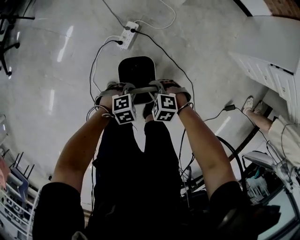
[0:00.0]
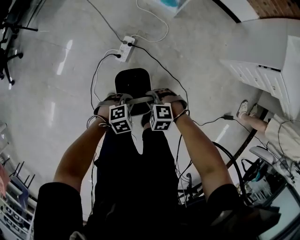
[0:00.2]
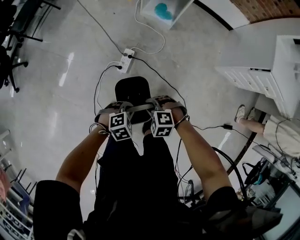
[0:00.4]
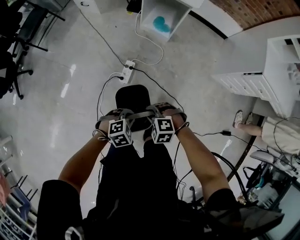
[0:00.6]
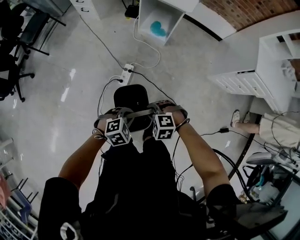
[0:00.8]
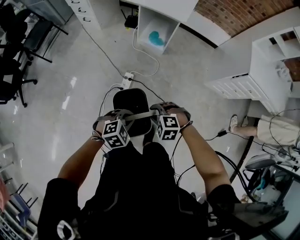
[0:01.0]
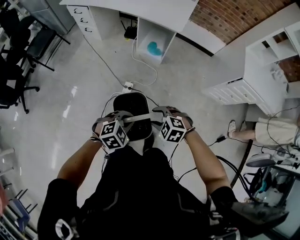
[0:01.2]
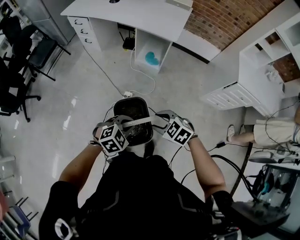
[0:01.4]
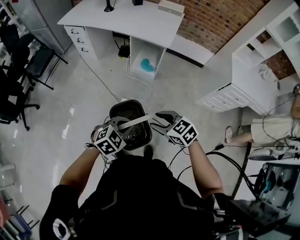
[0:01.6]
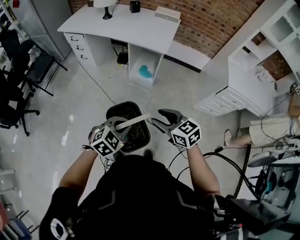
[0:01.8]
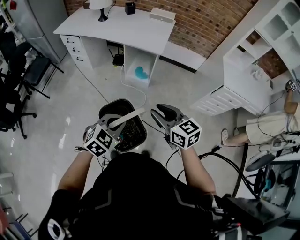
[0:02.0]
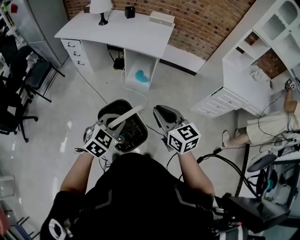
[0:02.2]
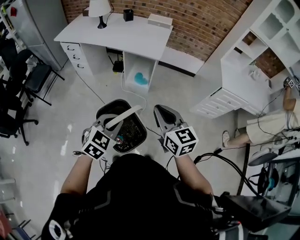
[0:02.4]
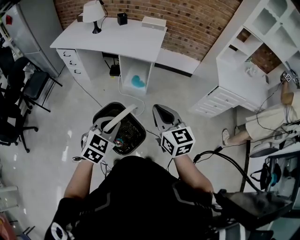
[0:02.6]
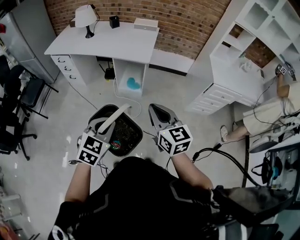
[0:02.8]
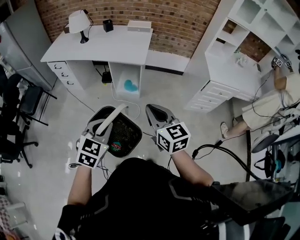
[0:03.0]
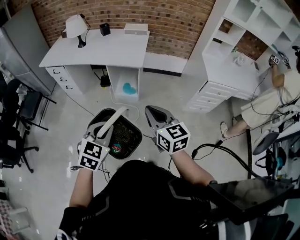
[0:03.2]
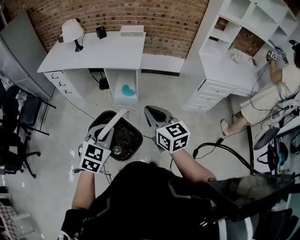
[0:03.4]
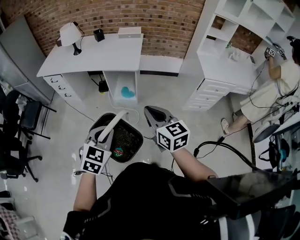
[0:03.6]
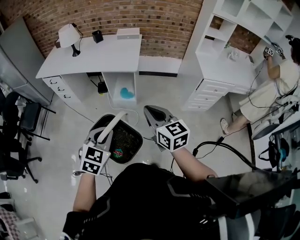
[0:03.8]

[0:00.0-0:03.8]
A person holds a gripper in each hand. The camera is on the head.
0:00.0 to 0:01.2: The grippers both shift upward by about 30 cm. The right gripper opens up; the left gripper turns by roughly 20 degrees.
0:01.2 to 0:02.6: Both grippers move upward, some 20 cm. The left gripper turns by roughly 30 degrees; the right gripper angles its fingers upward, by approximately 50 degrees, and closes its fingers.
0:02.6 to 0:03.8: The grippers move only a little.

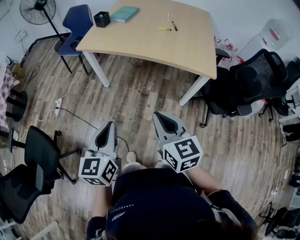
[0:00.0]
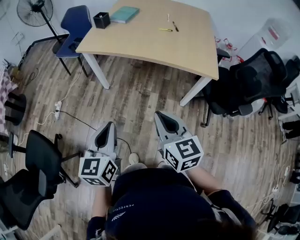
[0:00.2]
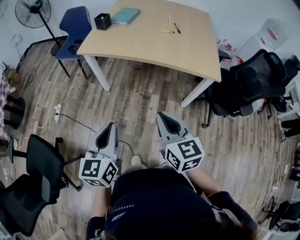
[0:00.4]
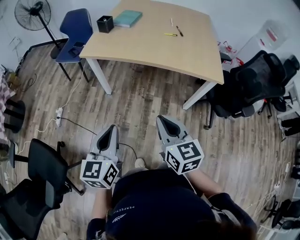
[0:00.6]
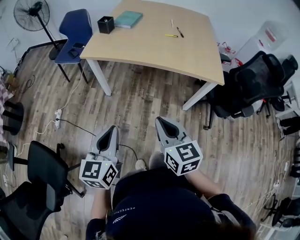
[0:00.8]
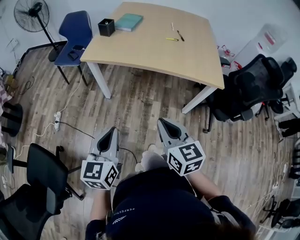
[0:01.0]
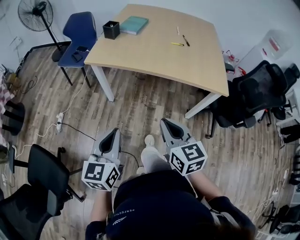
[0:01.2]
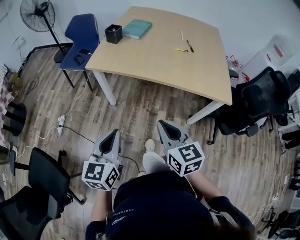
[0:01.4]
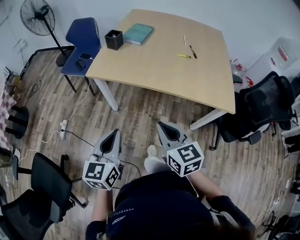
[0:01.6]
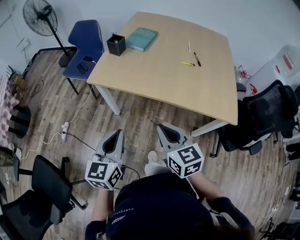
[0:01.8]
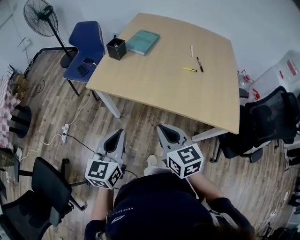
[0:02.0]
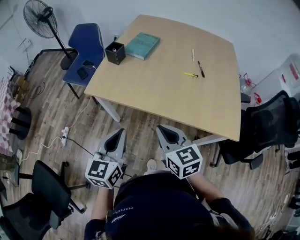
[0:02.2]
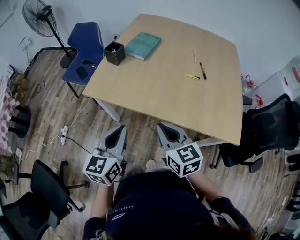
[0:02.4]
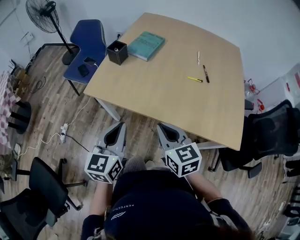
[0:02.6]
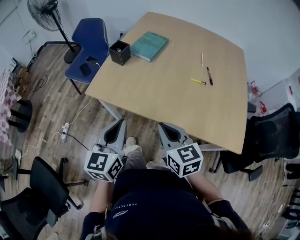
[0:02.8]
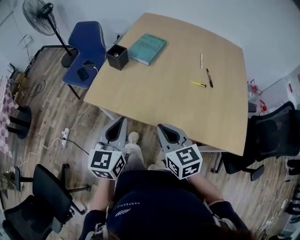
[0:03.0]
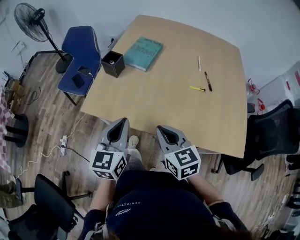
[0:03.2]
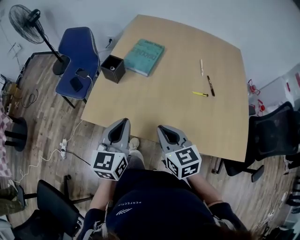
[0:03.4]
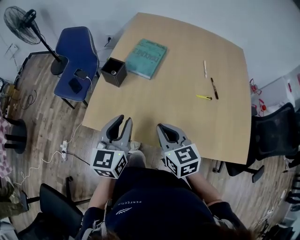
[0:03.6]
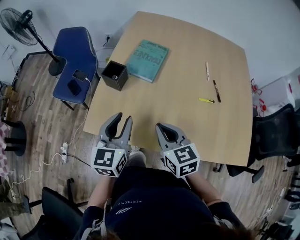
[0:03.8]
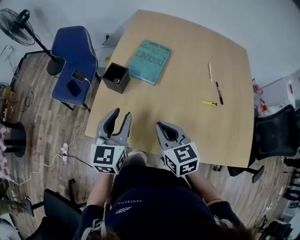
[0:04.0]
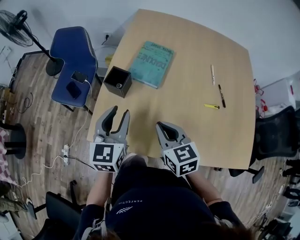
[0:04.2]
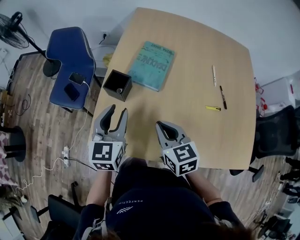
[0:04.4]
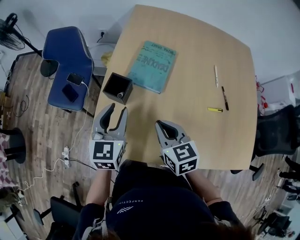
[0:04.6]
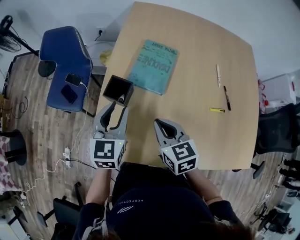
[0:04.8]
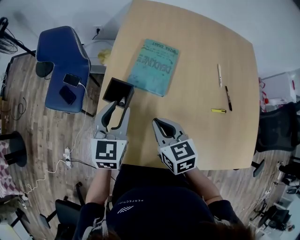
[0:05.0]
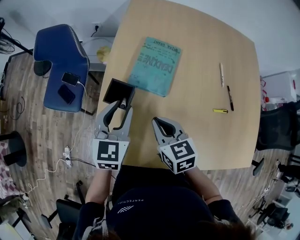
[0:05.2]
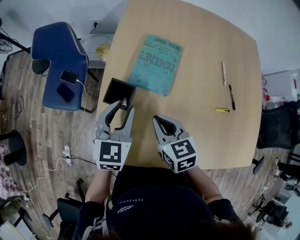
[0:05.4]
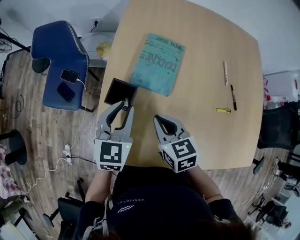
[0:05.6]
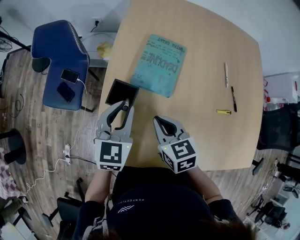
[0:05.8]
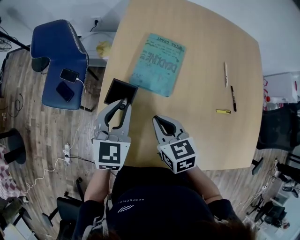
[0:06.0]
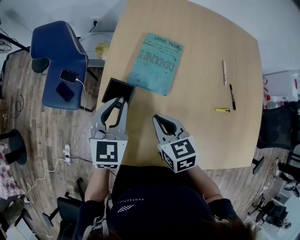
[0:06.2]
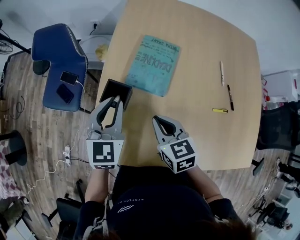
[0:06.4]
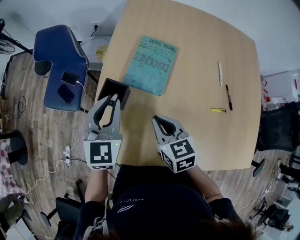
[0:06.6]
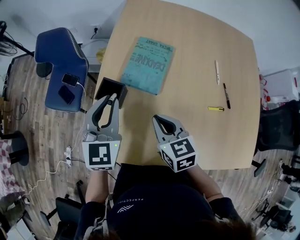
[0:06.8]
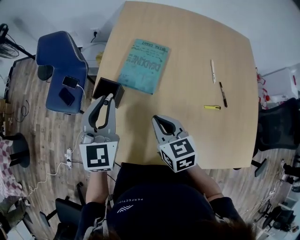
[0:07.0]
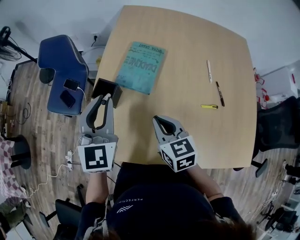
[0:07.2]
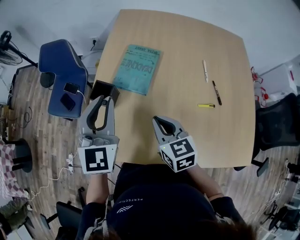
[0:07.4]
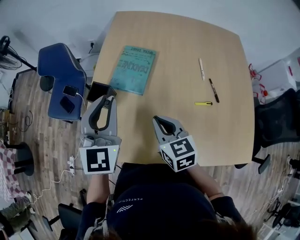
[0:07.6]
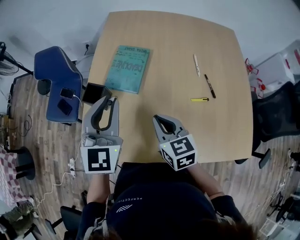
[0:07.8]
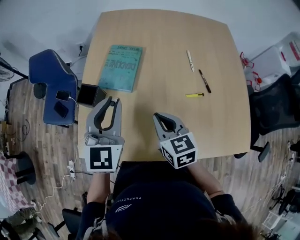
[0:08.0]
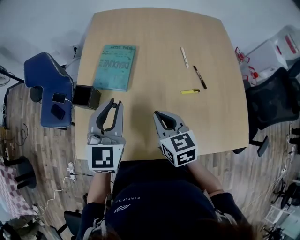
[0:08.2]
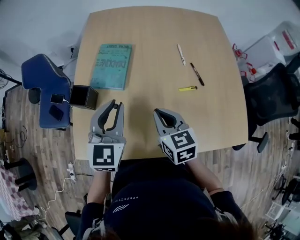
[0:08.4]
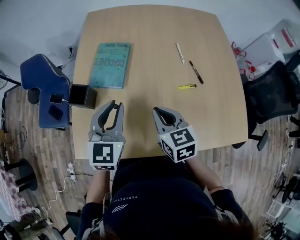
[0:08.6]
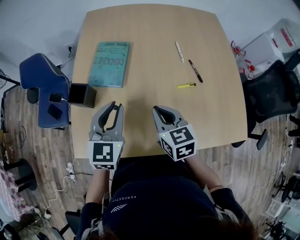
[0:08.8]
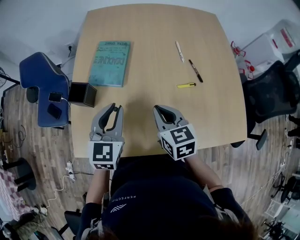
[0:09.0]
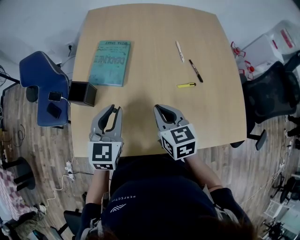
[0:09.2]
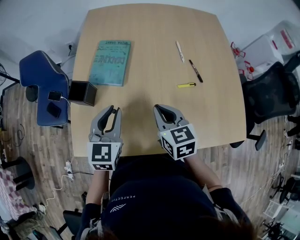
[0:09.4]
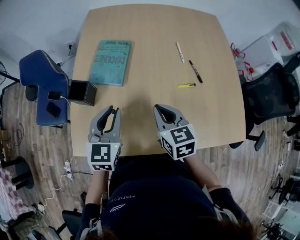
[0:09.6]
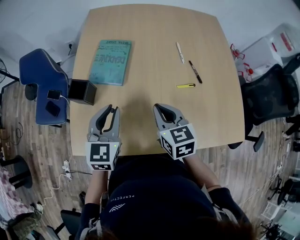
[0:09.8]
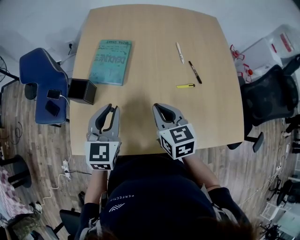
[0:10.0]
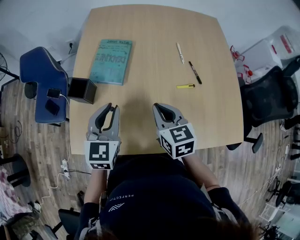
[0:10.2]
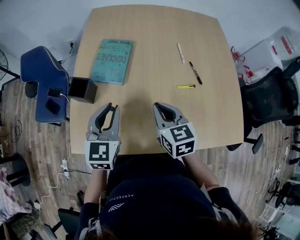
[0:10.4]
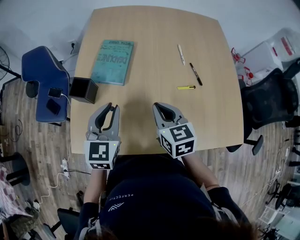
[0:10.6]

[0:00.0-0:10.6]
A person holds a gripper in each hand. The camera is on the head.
0:00.0 to 0:01.6: Both grippers move forward and to the left, approximately 20 cm.
0:01.6 to 0:03.0: Both grippers travel together forward, approximately 25 cm.
0:03.0 to 0:04.6: Both grippers travel together forward, approximately 30 cm. The left gripper opens.
0:04.6 to 0:06.0: The two grippers go roughly 5 cm forward.
0:06.0 to 0:07.6: The left gripper moves upward, to the right and backward, about 15 cm, and swivels some 20 degrees; the right gripper travels to the right, backward and upward by some 15 cm.
0:07.6 to 0:09.0: The left gripper shifts some 10 cm downward and to the right, and changes its angle by about 20 degrees. Meanwhile the right gripper travels to the right by about 5 cm.
0:09.0 to 0:10.6: The grippers move only a little.

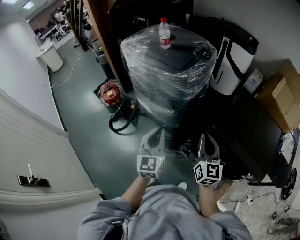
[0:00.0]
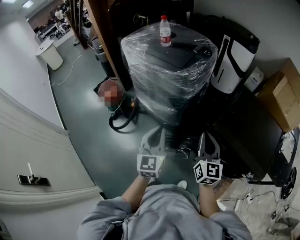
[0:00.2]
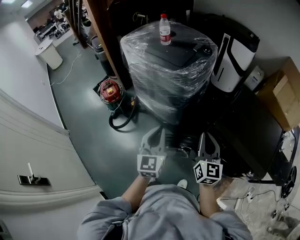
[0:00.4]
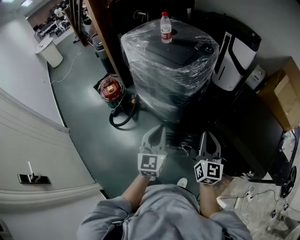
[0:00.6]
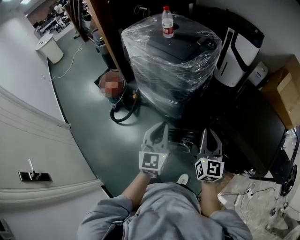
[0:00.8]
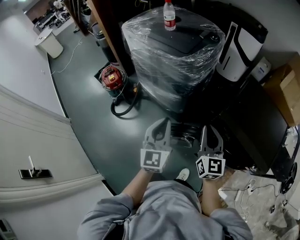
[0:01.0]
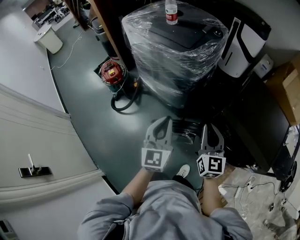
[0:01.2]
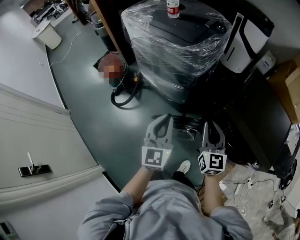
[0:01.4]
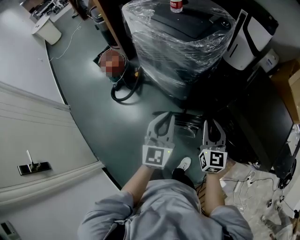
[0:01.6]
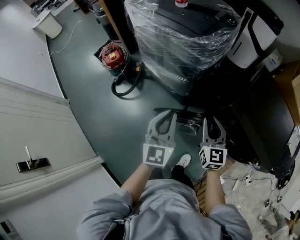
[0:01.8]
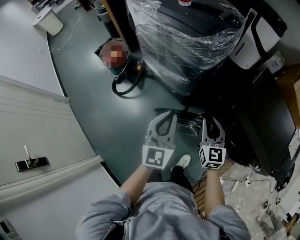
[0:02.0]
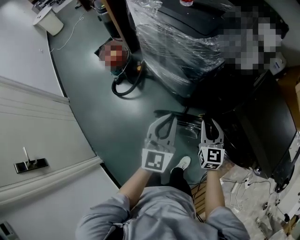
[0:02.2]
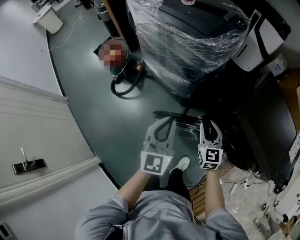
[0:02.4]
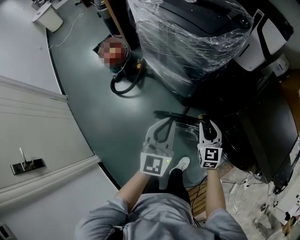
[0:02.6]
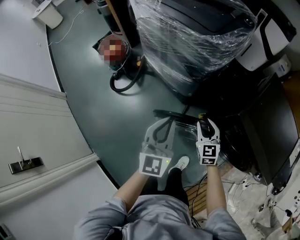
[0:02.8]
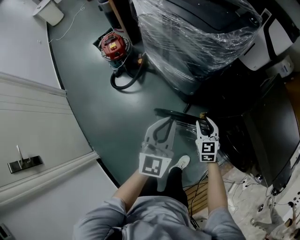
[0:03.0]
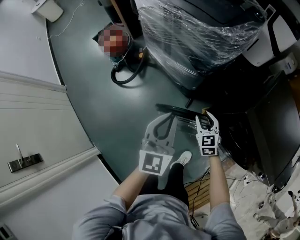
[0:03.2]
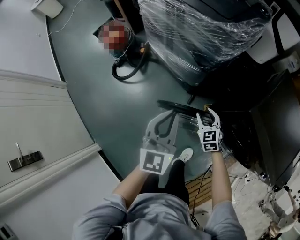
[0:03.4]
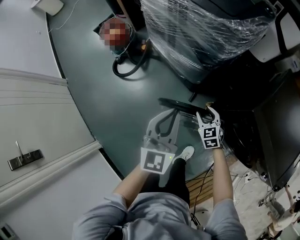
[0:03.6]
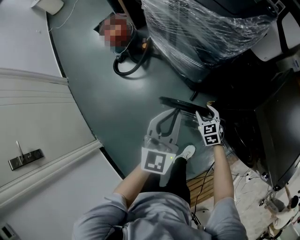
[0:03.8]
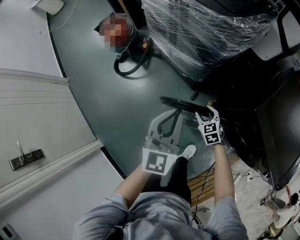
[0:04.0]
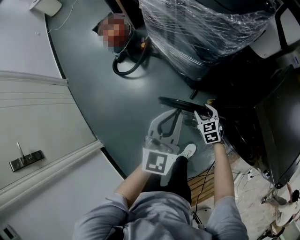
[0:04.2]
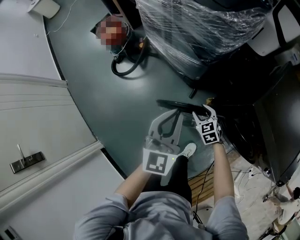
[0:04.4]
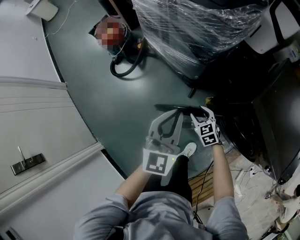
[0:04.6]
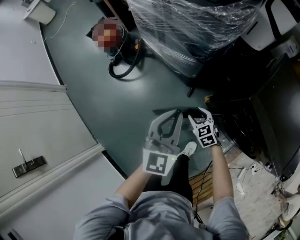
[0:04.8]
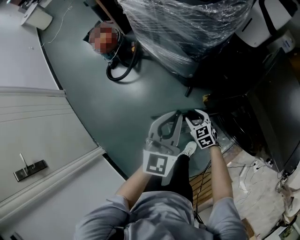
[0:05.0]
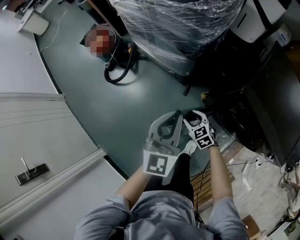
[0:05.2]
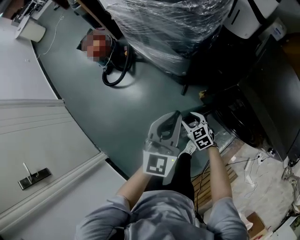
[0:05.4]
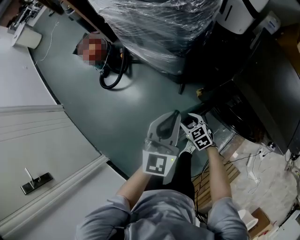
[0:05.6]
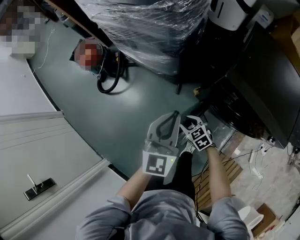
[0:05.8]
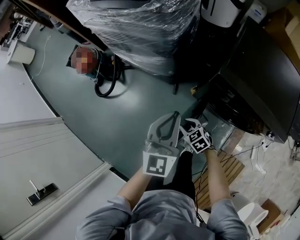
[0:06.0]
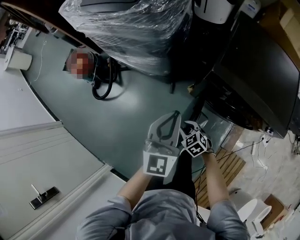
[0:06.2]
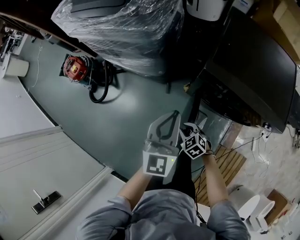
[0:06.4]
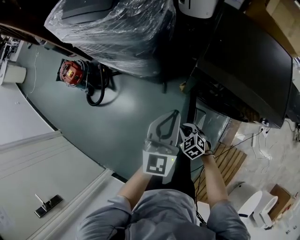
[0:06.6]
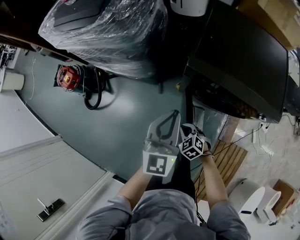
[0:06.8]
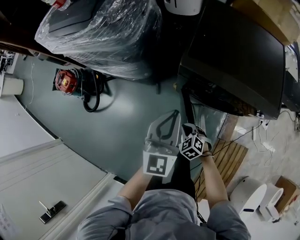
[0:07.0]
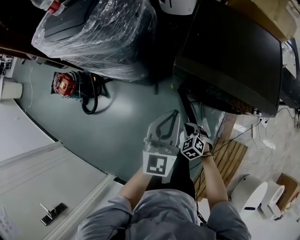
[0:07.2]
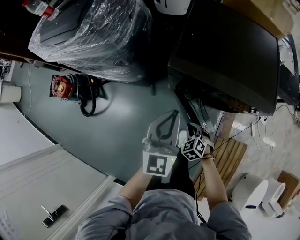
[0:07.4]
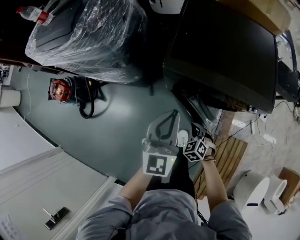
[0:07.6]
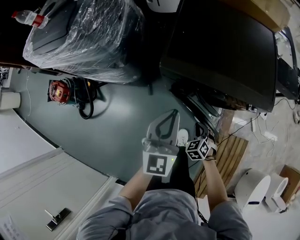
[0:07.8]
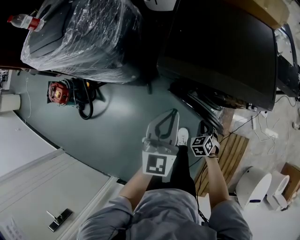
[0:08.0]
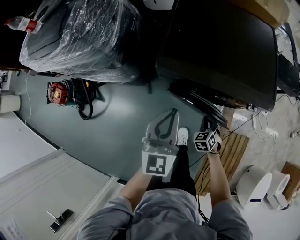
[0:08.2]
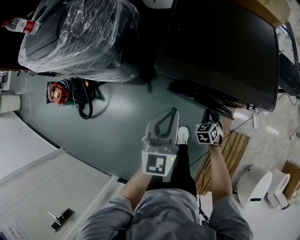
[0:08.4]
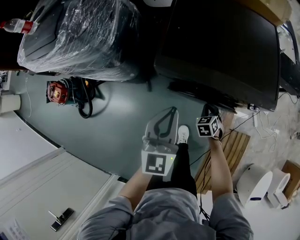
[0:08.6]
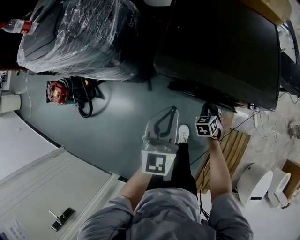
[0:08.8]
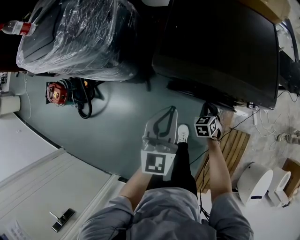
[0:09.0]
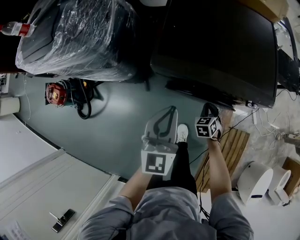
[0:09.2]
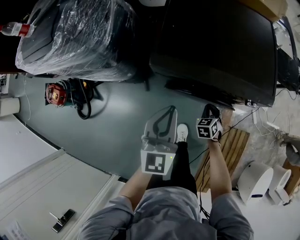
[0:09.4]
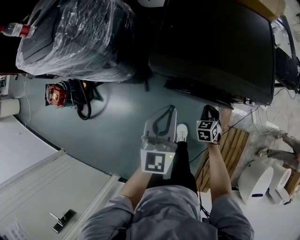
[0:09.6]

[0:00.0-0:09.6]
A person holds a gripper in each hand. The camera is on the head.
0:00.0 to 0:01.6: The right gripper moves downward, approximately 10 cm.
0:01.6 to 0:03.2: The right gripper goes about 25 cm downward, rotates approximately 30 degrees, and opens, while the left gripper goes about 10 cm downward.
0:03.2 to 0:04.8: The right gripper moves downward, approximately 10 cm.
0:04.8 to 0:06.4: The right gripper heads backward and to the right, covering about 15 cm, and closes. The left gripper goes about 15 cm to the right and backward.
0:06.4 to 0:08.0: The right gripper shifts by roughly 25 cm, and rotates roughly 40 degrees. Meanwhile the left gripper ends up some 15 cm from where it was.
0:08.0 to 0:09.6: The right gripper shifts roughly 5 cm forward.
